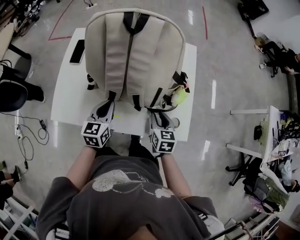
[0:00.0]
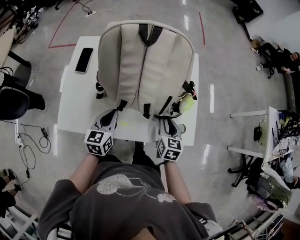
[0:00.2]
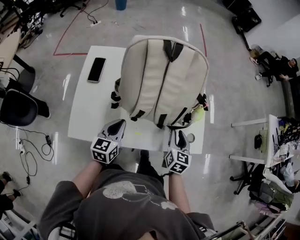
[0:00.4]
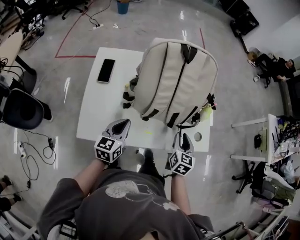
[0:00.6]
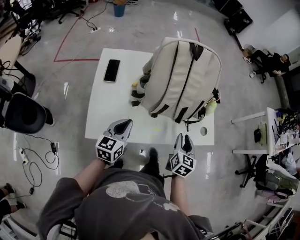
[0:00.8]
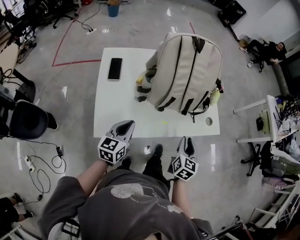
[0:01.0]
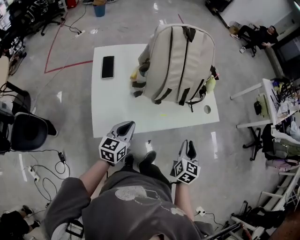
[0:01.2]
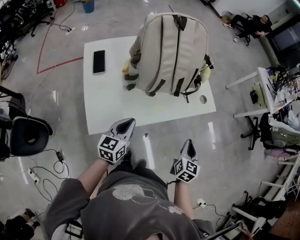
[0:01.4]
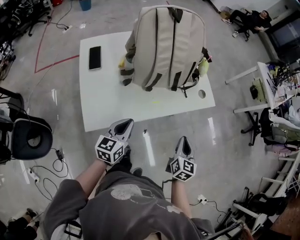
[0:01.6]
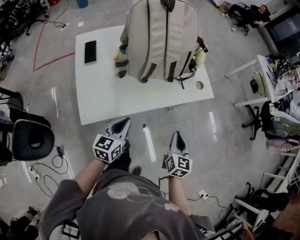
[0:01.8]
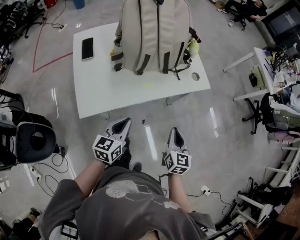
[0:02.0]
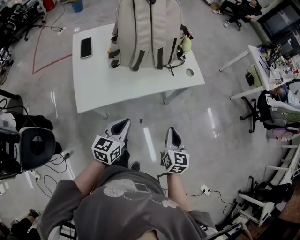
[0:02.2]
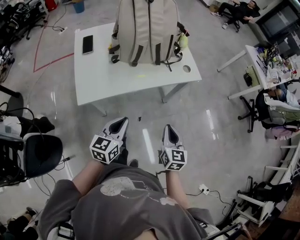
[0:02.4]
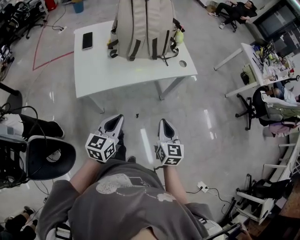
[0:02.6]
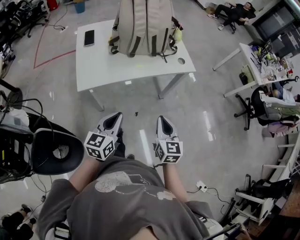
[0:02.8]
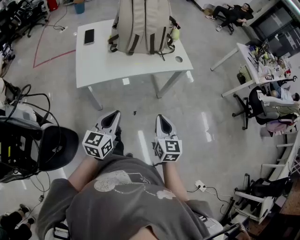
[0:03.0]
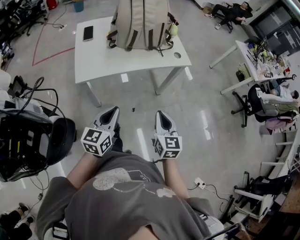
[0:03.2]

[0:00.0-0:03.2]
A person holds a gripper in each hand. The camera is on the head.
0:00.0 to 0:01.6: The right gripper changes place by roughly 25 cm, rotates roughly 40 degrees, and closes up, while the left gripper changes place by some 20 cm, and swivels some 30 degrees.
0:01.6 to 0:03.2: The right gripper moves backward, about 20 cm, and rotates approximately 20 degrees, while the left gripper moves backward and to the right, some 25 cm.

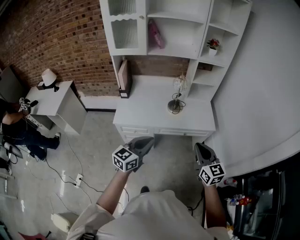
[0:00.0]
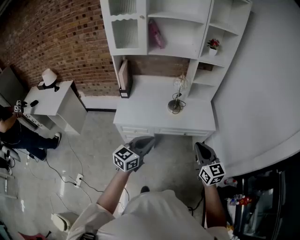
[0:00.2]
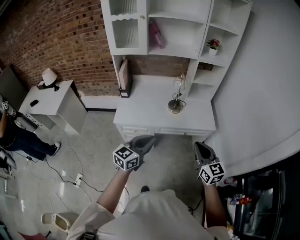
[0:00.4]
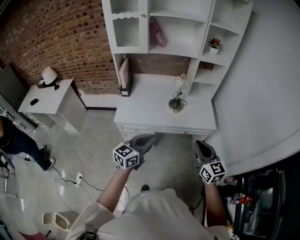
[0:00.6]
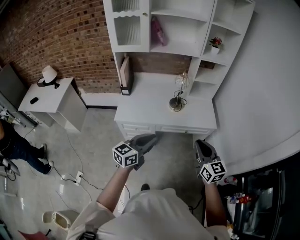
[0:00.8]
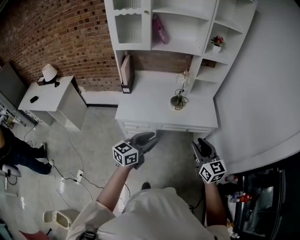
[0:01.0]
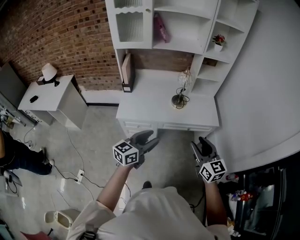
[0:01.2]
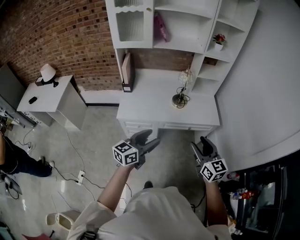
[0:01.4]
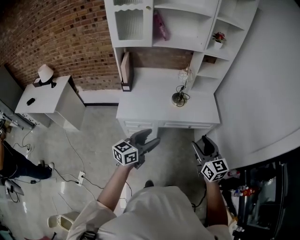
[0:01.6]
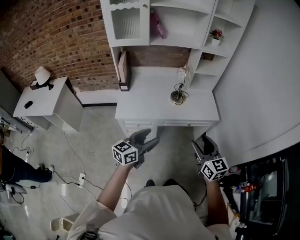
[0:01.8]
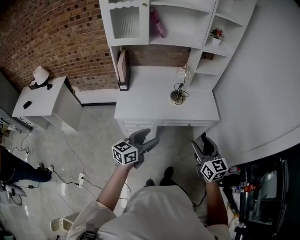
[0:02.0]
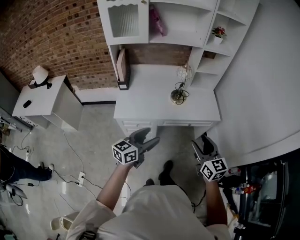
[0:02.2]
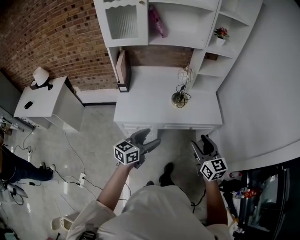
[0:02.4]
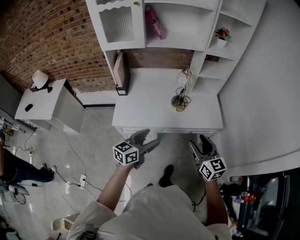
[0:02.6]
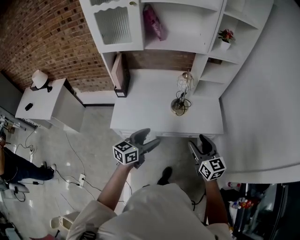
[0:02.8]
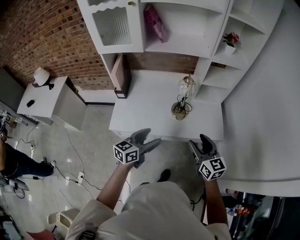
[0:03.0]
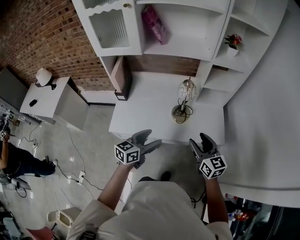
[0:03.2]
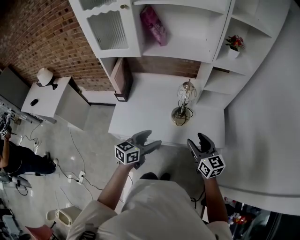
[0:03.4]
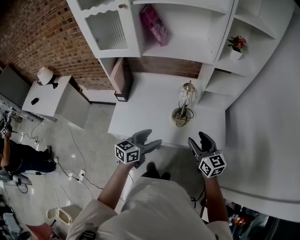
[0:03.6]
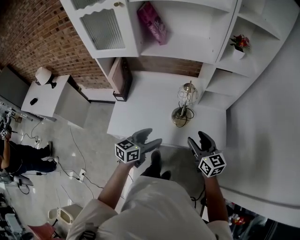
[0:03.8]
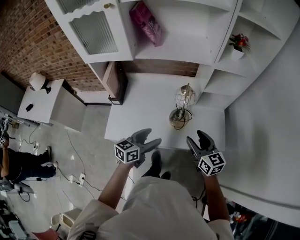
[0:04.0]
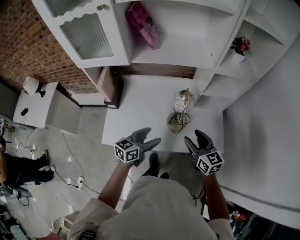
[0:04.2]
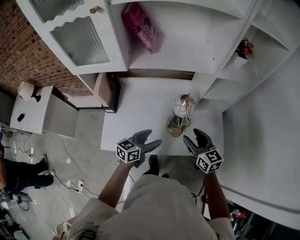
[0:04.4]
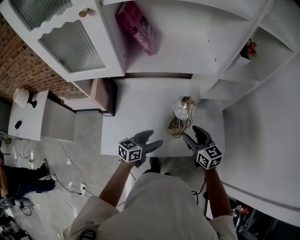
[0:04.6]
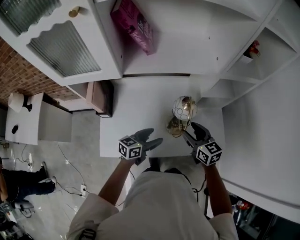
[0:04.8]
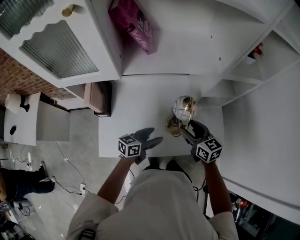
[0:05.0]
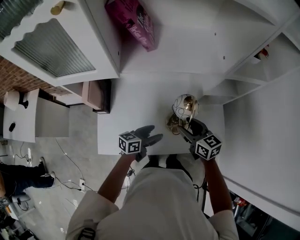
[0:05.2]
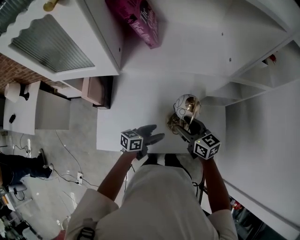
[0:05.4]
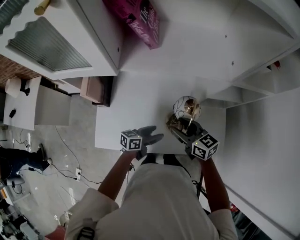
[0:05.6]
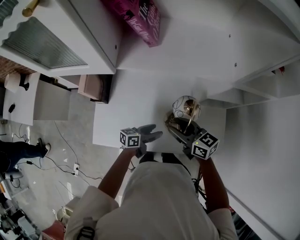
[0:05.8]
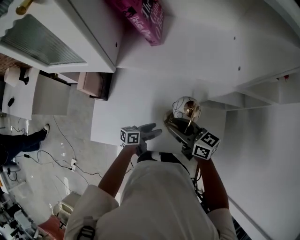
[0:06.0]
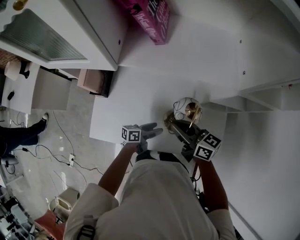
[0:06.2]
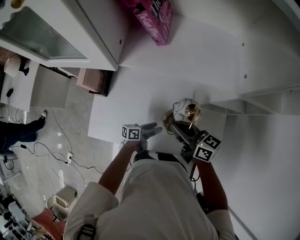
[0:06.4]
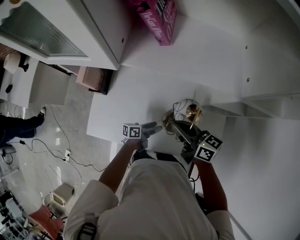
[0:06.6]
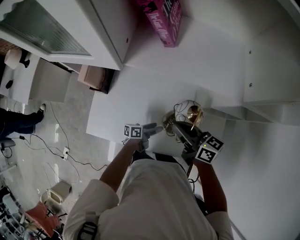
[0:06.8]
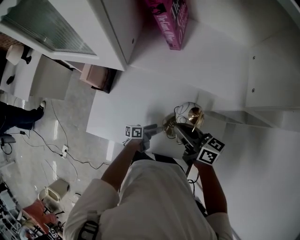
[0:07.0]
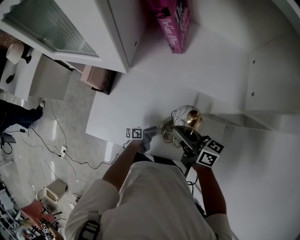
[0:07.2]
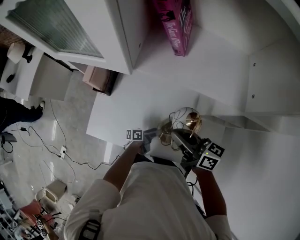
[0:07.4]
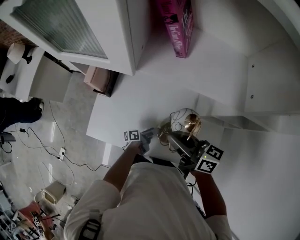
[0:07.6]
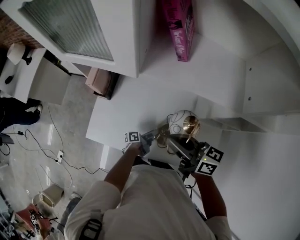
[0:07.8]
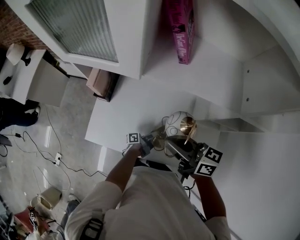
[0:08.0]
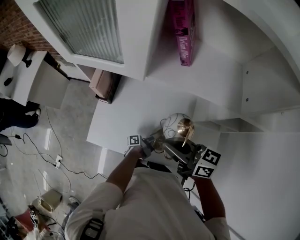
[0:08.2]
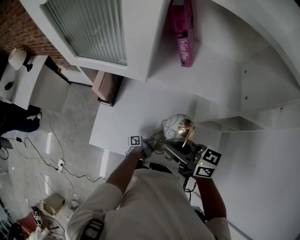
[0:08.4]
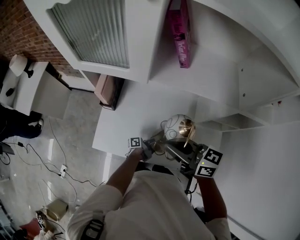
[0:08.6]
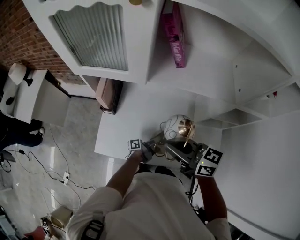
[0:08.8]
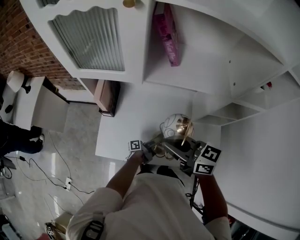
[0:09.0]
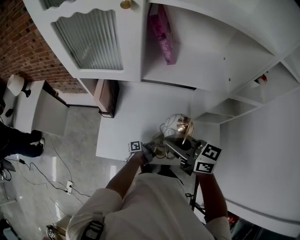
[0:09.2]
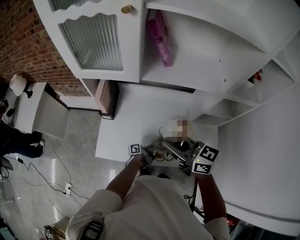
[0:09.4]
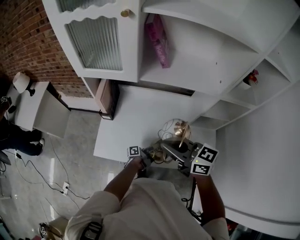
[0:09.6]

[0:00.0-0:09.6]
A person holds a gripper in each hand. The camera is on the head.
0:00.0 to 0:01.6: The two grippers go roughly 5 cm to the left. The right gripper opens its fingers; the left gripper opens its fingers.
0:01.6 to 0:03.2: The two grippers go approximately 25 cm forward.
0:03.2 to 0:04.8: The right gripper is displaced forward by about 25 cm; the left gripper goes roughly 25 cm forward and downward.
0:04.8 to 0:06.4: The right gripper moves to the left and forward, some 10 cm, changes its angle by approximately 40 degrees, and closes its fingers. The left gripper travels downward by approximately 15 cm, and changes its angle by approximately 40 degrees.
0:06.4 to 0:08.0: The left gripper turns by some 40 degrees. The right gripper is displaced upward and to the left by some 10 cm.
0:08.0 to 0:09.6: Both grippers travel together backward and upward, about 10 cm.

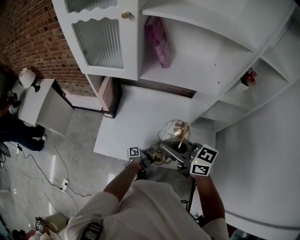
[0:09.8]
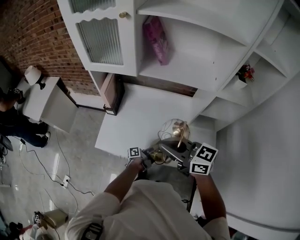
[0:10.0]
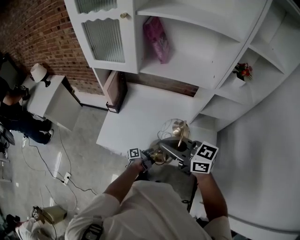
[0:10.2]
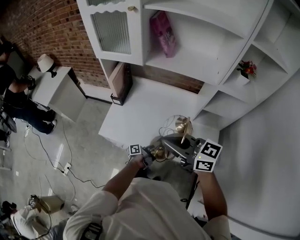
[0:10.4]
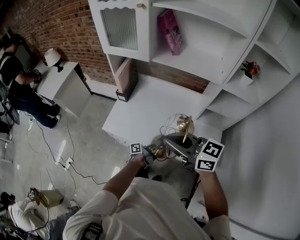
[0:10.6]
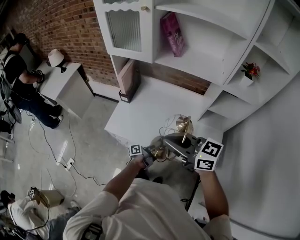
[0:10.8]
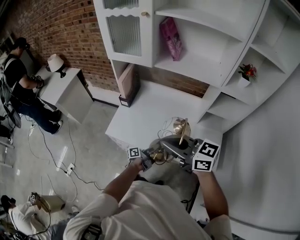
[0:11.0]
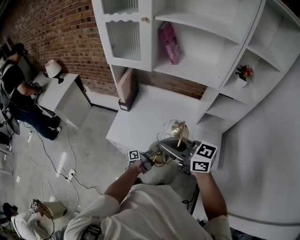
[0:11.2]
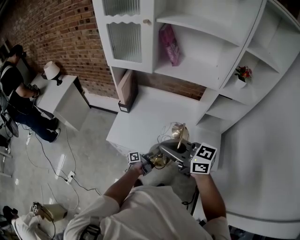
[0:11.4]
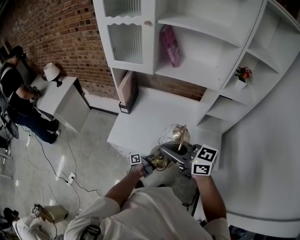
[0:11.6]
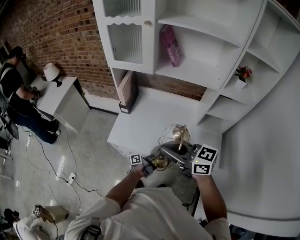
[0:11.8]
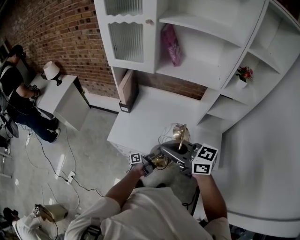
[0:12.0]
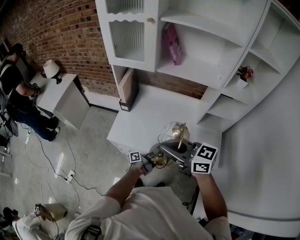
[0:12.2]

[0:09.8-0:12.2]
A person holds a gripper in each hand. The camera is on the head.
0:09.8 to 0:11.0: The grippers both shift backward by approximately 10 cm.
0:11.0 to 0:12.2: There are only small adjustments of the grippers.

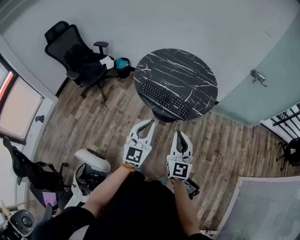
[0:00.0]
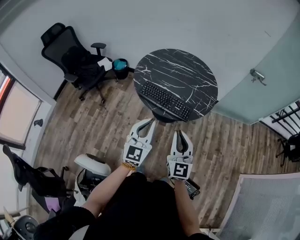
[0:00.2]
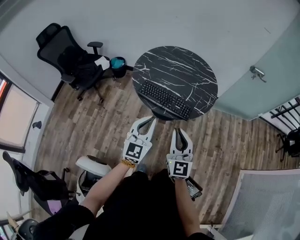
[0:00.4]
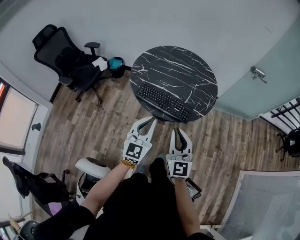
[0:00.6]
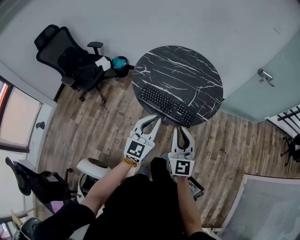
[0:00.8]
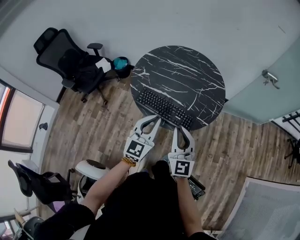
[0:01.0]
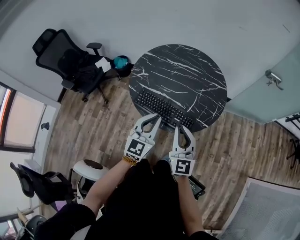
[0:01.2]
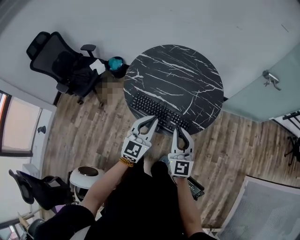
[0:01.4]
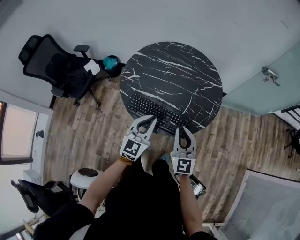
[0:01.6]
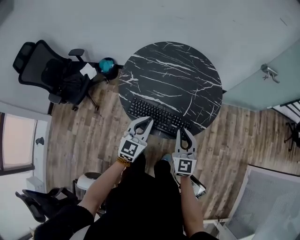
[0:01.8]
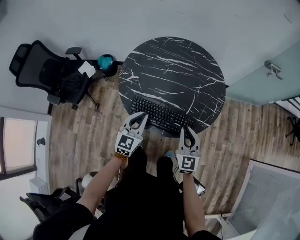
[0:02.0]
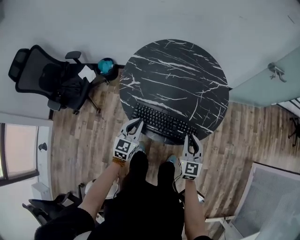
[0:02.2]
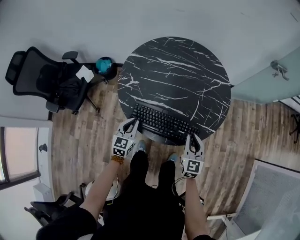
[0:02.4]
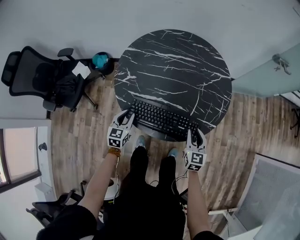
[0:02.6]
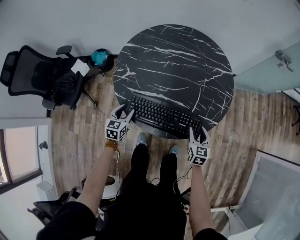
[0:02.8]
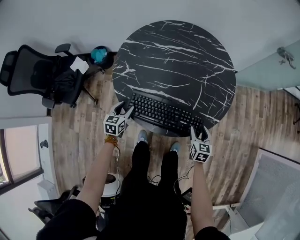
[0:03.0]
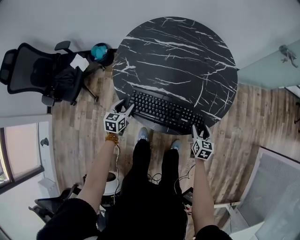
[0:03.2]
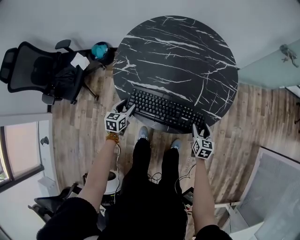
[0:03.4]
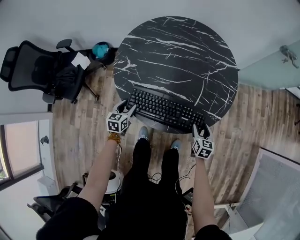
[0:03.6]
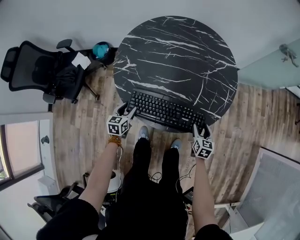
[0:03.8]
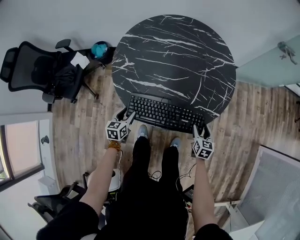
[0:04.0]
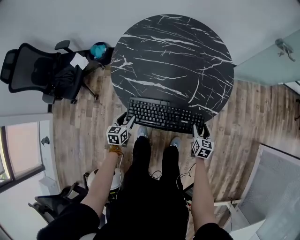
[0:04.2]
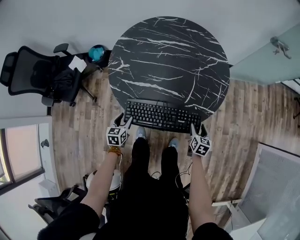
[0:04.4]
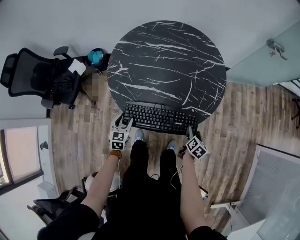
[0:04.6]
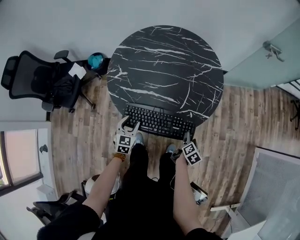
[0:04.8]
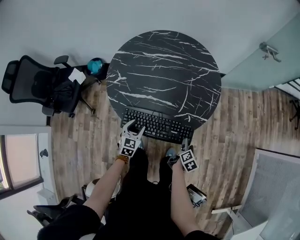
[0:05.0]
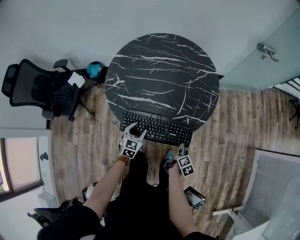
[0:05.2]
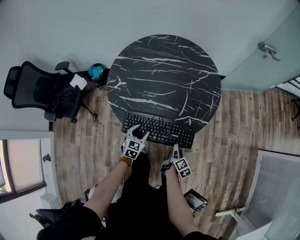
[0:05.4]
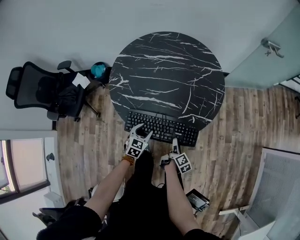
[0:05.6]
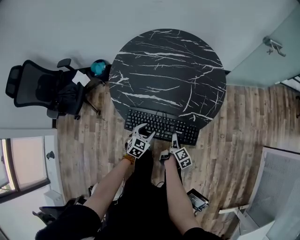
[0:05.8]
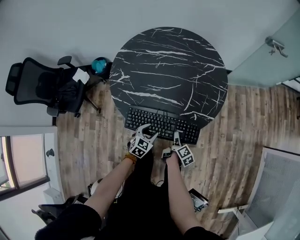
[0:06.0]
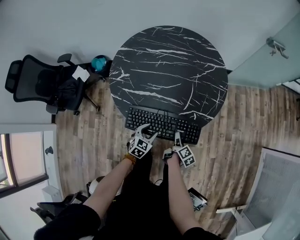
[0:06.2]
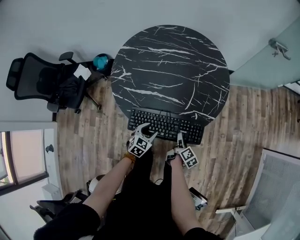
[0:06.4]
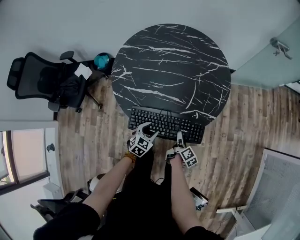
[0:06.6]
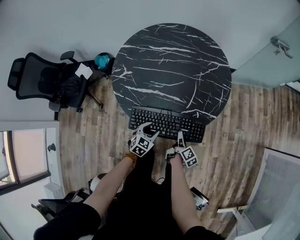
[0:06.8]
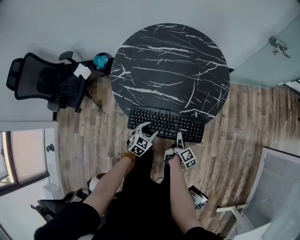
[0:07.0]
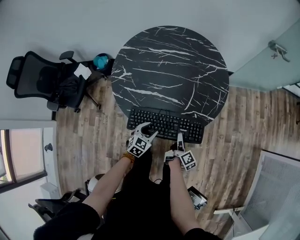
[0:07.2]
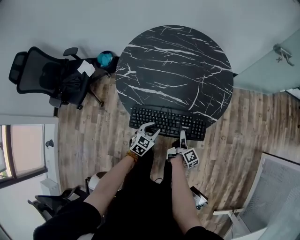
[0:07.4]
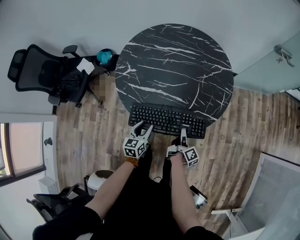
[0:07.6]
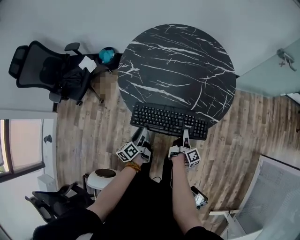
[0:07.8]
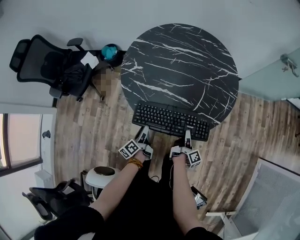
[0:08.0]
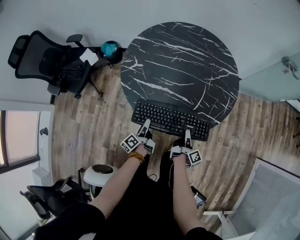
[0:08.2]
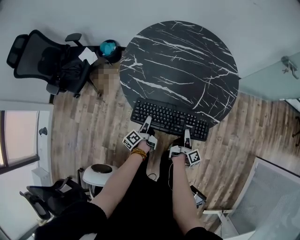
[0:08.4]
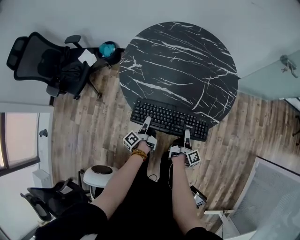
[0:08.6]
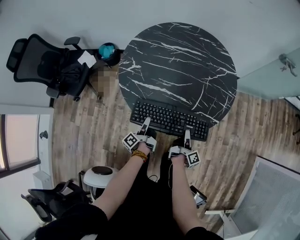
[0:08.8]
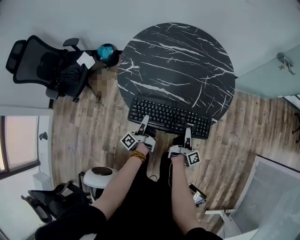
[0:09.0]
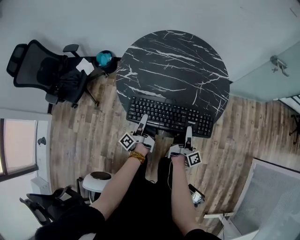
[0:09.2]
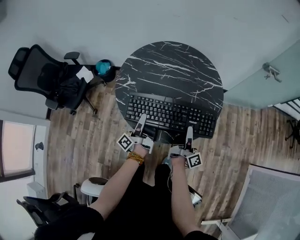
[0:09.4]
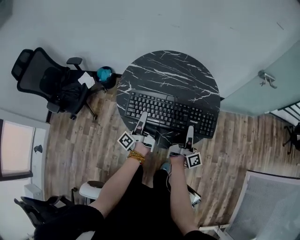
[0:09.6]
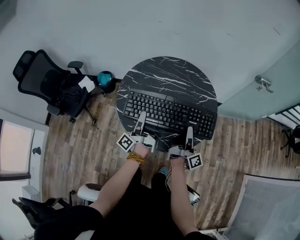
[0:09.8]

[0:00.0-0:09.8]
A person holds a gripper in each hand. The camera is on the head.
0:00.0 to 0:01.4: Both grippers travel together forward, some 20 cm.
0:01.4 to 0:02.8: The left gripper travels downward, to the left and forward by about 35 cm, tilts its fingers some 30 degrees downward, and opens, while the right gripper shifts roughly 25 cm downward, tips its fingers downward by some 30 degrees, and opens its fingers.
0:02.8 to 0:04.2: The right gripper is displaced downward and to the right by approximately 10 cm. The left gripper moves backward and downward, about 10 cm.
0:04.2 to 0:05.6: The left gripper heads to the right, covering approximately 10 cm, and rotates approximately 30 degrees. Meanwhile the right gripper travels to the left and backward by some 10 cm, and rolls clockwise, seen from behind, by about 70 degrees.
0:05.6 to 0:07.0: The right gripper closes.
0:07.0 to 0:08.4: The left gripper shifts roughly 10 cm to the left, and rotates around the line of its fingers by roughly 90 degrees, counterclockwise from behind.
0:08.4 to 0:09.8: The two grippers go about 25 cm upward. The right gripper points its fingers roughly 30 degrees further upward, while the left gripper tips its fingers upward by about 40 degrees.
